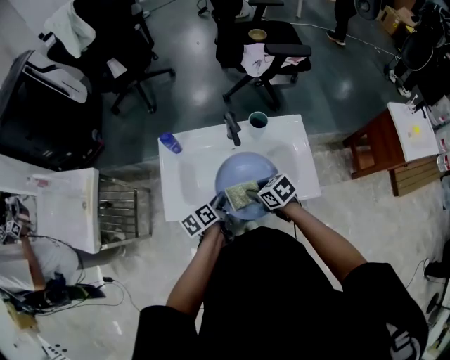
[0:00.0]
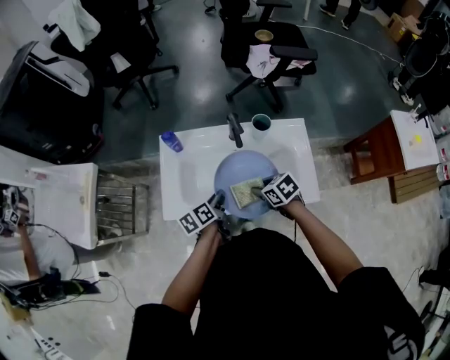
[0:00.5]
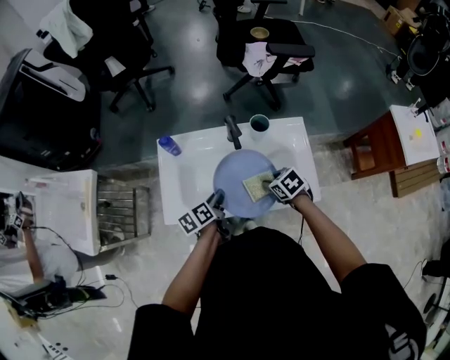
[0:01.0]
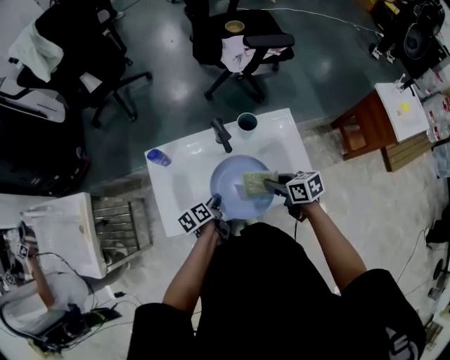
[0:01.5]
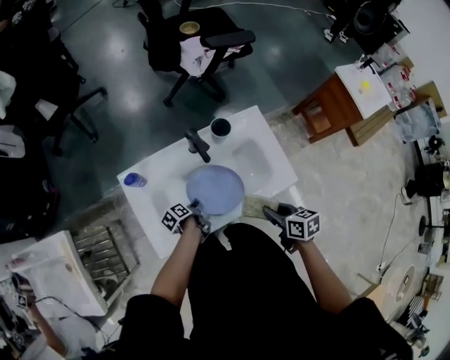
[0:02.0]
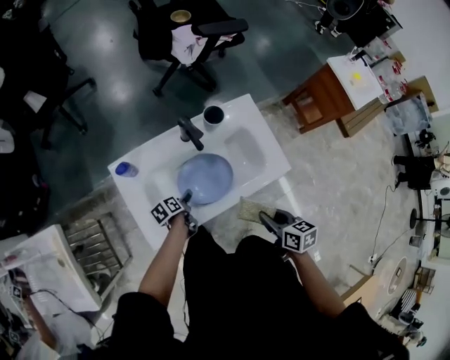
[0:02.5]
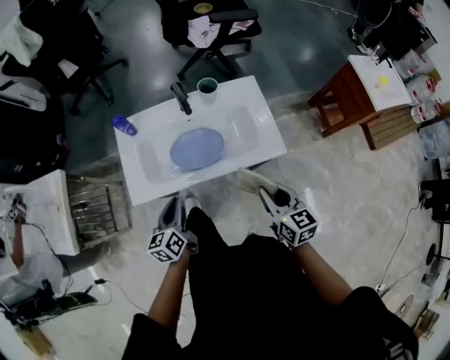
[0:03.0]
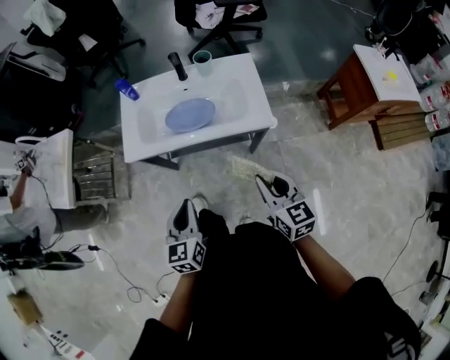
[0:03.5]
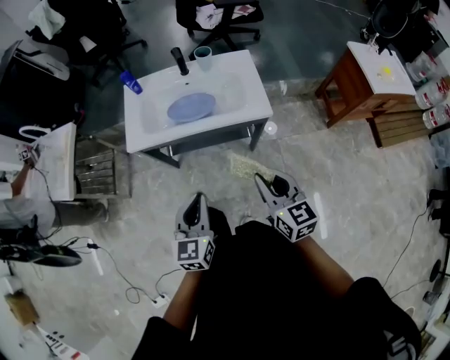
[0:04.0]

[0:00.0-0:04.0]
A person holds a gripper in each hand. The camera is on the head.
0:00.0 to 0:02.0: The right gripper changes place by approximately 10 cm, and swivels approximately 50 degrees. The left gripper heads downward, covering approximately 15 cm, and changes its angle by about 30 degrees.
0:02.0 to 0:04.0: The right gripper moves about 30 cm, and swivels roughly 40 degrees. Meanwhile the left gripper changes place by approximately 50 cm, rotates around the line of its fingers by roughly 60 degrees, clockwise from behind, and opens, then closes again.

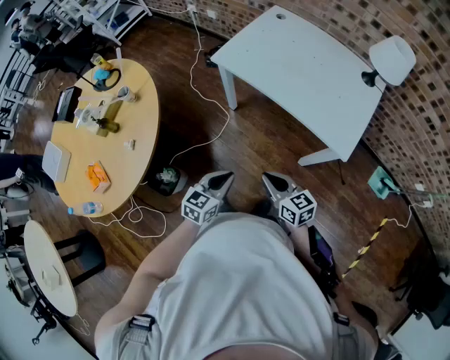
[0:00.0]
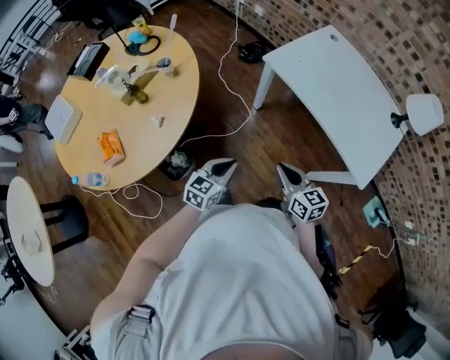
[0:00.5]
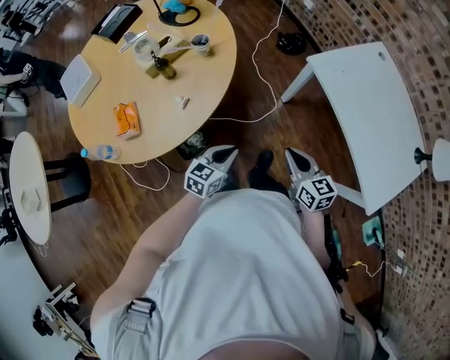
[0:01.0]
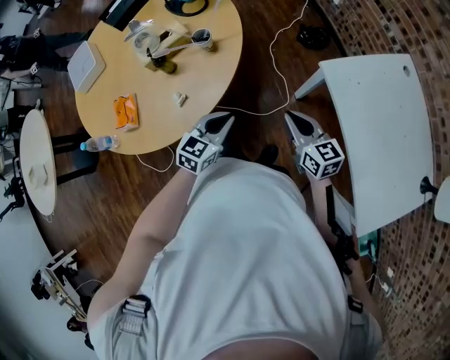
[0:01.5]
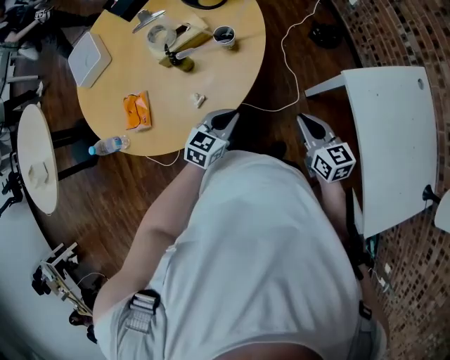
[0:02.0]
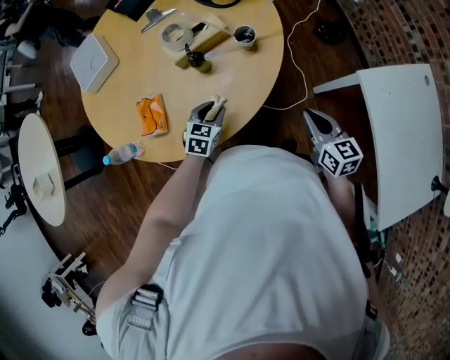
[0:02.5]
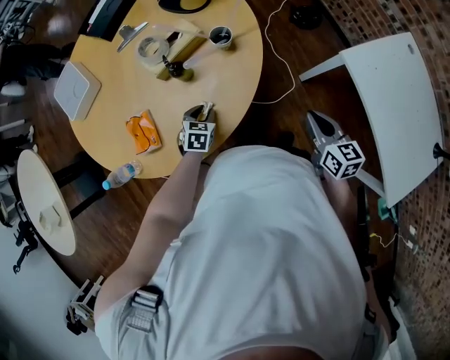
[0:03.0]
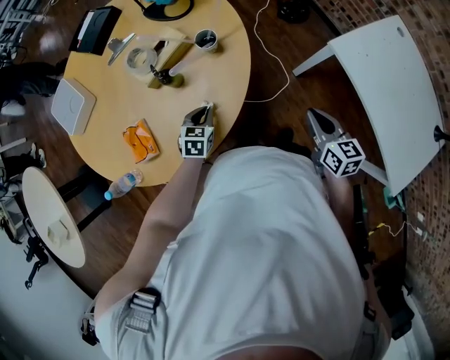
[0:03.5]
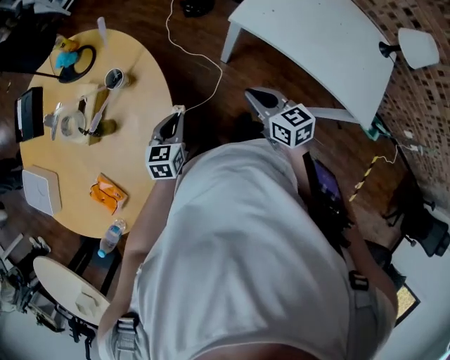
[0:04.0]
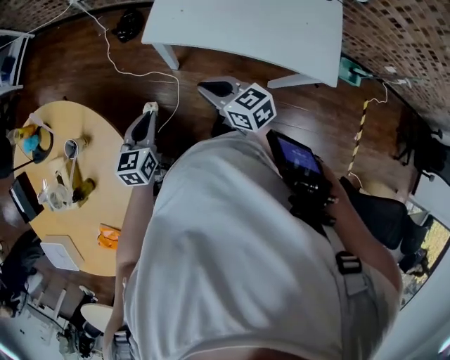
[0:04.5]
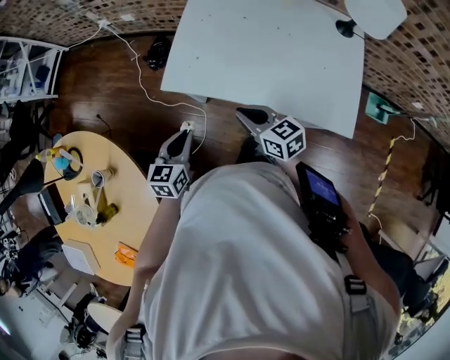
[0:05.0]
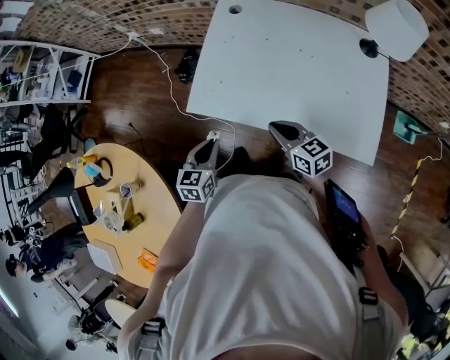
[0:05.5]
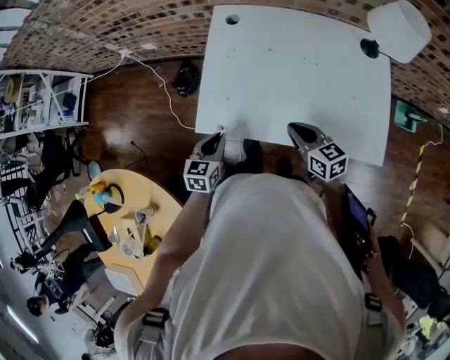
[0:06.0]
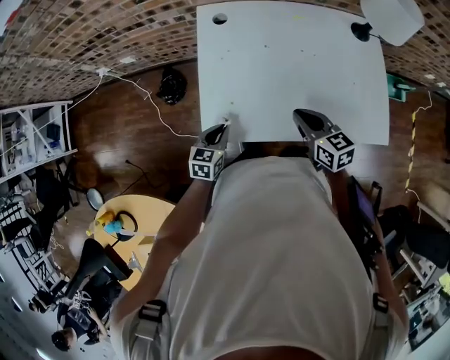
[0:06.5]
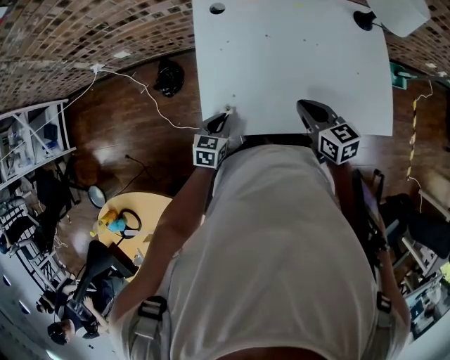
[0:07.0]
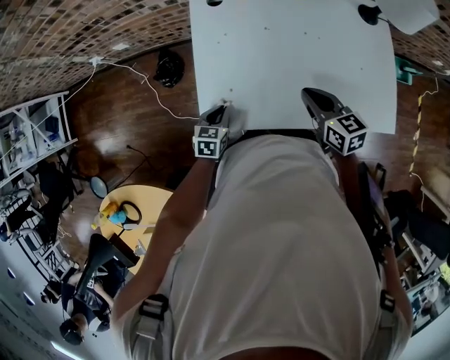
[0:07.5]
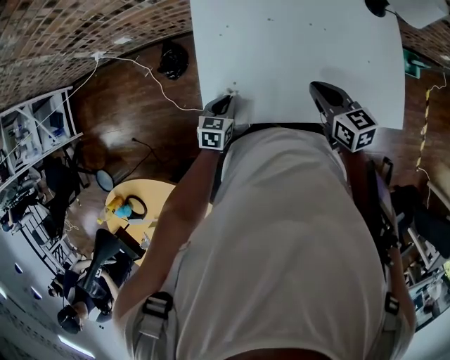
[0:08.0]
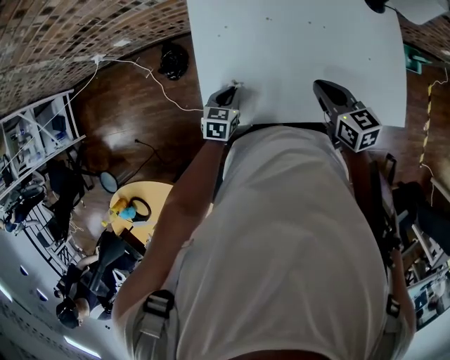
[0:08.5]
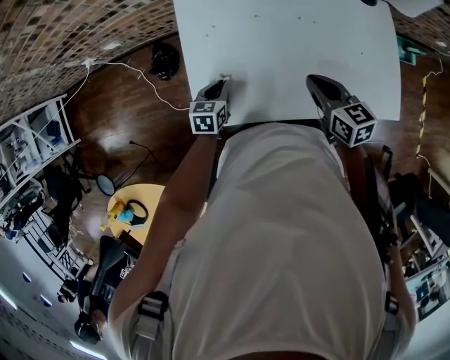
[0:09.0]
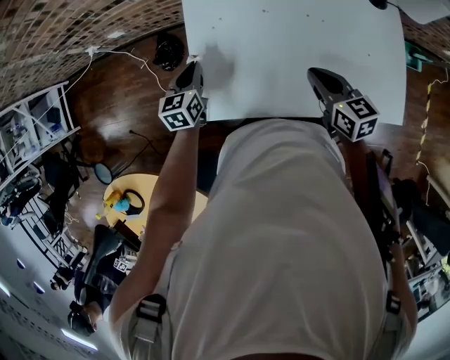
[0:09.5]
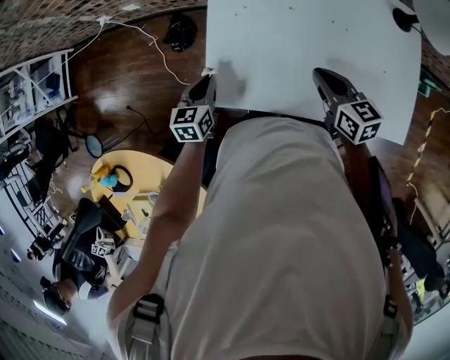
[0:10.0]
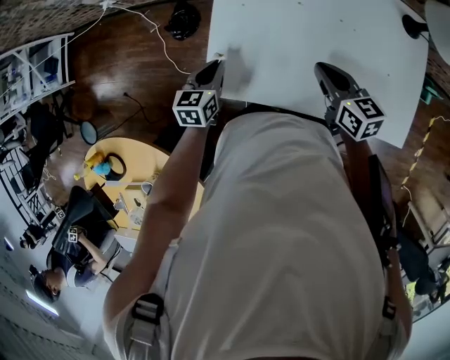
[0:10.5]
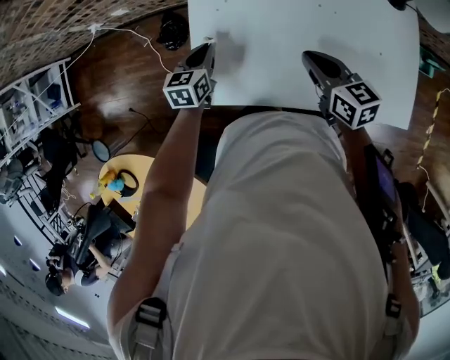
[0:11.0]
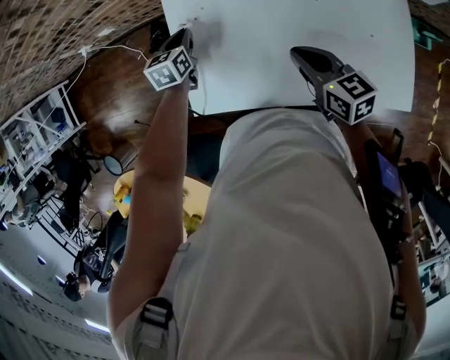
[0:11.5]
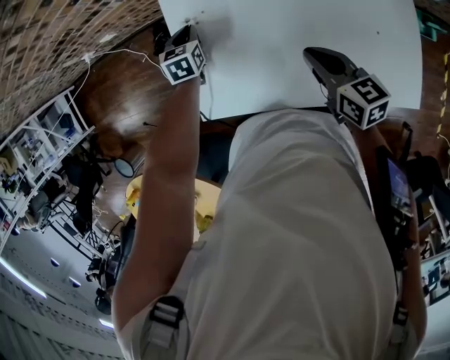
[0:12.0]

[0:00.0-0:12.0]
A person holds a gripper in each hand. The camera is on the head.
0:00.0 to 0:02.0: The pair of grippers is taken roughly 40 cm. The right gripper swivels roughly 30 degrees, while the left gripper turns by roughly 30 degrees.
0:02.0 to 0:04.0: The left gripper moves roughly 15 cm downward and comes back, and opens, then closes again. Meanwhile the right gripper shifts by some 5 cm, and swivels about 30 degrees.
0:04.0 to 0:06.0: The left gripper heads forward and to the right, covering approximately 40 cm, and swivels about 30 degrees; the right gripper shifts roughly 35 cm to the right and forward, and rotates some 30 degrees.
0:06.0 to 0:08.0: The left gripper moves forward and downward, about 15 cm. The right gripper heads forward, covering approximately 10 cm.
0:08.0 to 0:10.0: The left gripper goes roughly 10 cm upward and to the left, reaches approximately 10 cm forward, then returns, and swivels about 20 degrees.
0:10.0 to 0:12.0: The left gripper goes about 20 cm forward and to the right.

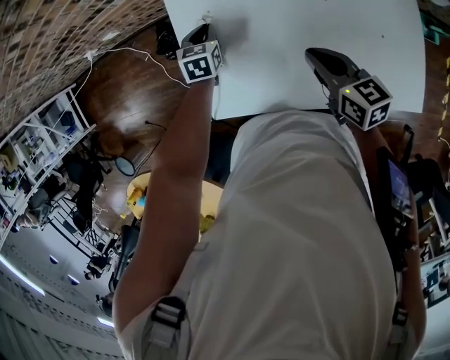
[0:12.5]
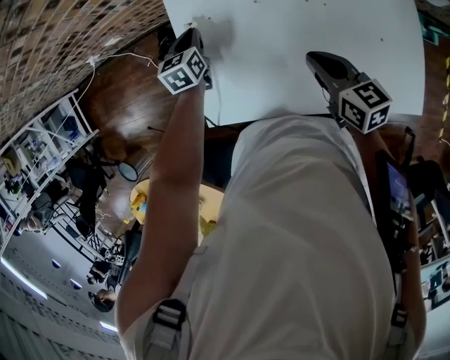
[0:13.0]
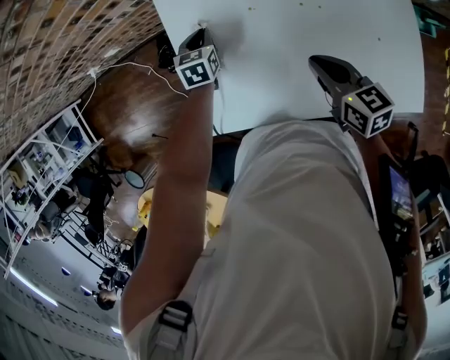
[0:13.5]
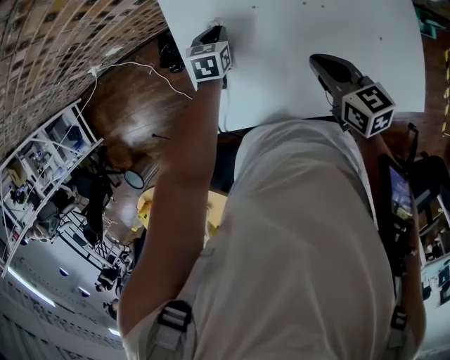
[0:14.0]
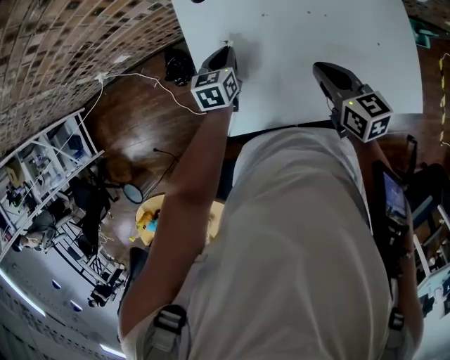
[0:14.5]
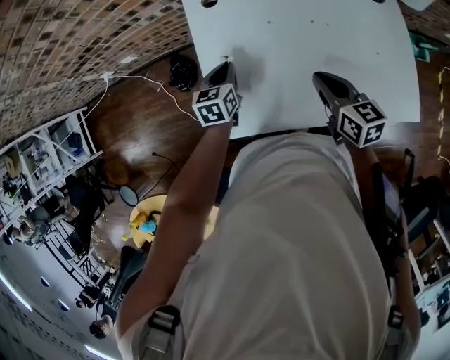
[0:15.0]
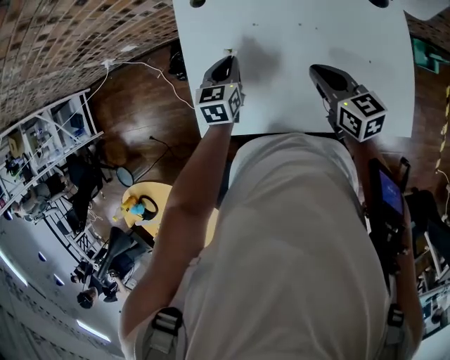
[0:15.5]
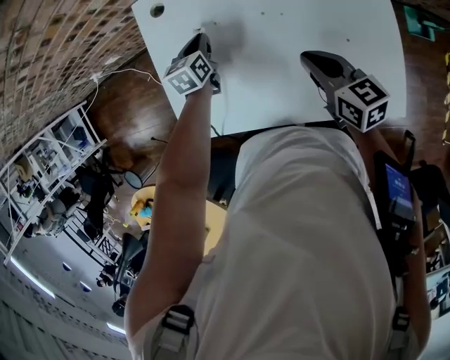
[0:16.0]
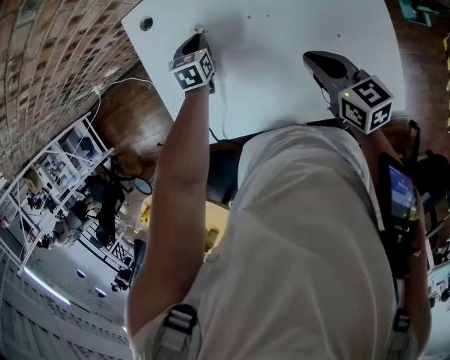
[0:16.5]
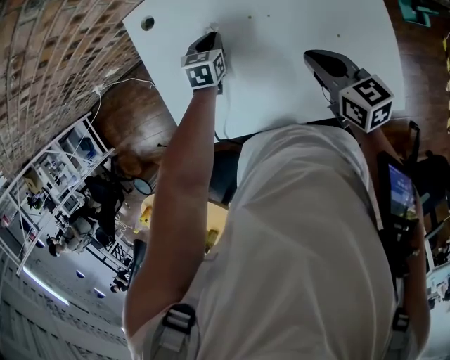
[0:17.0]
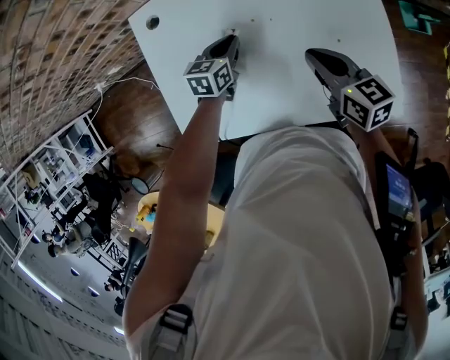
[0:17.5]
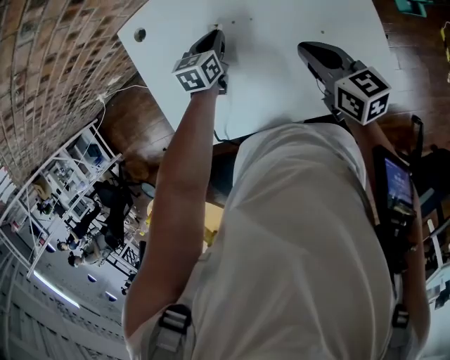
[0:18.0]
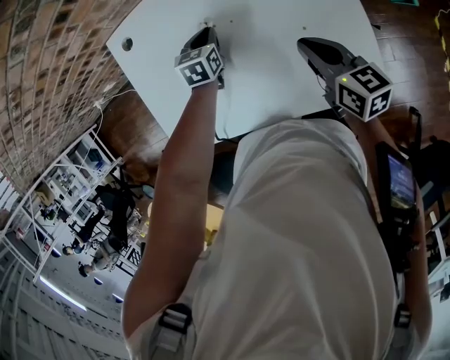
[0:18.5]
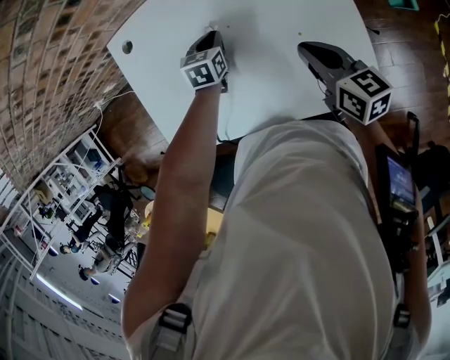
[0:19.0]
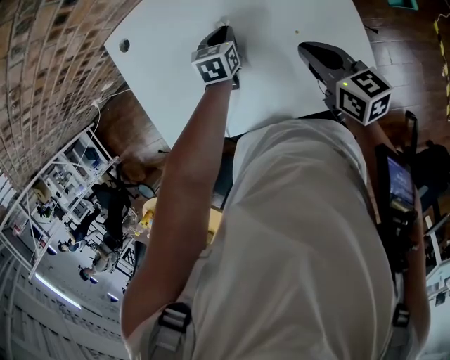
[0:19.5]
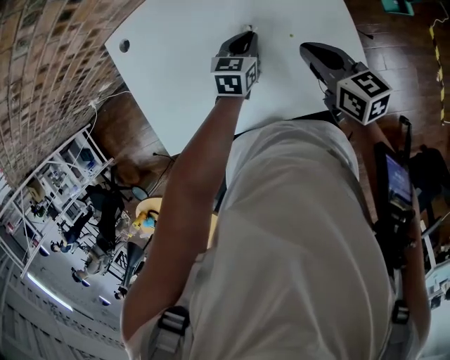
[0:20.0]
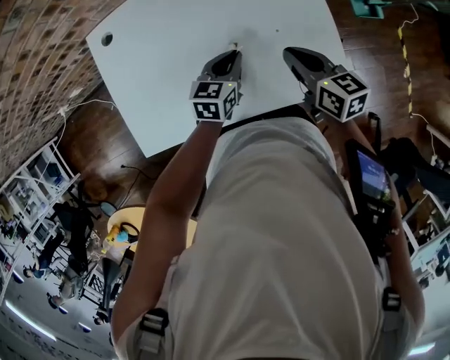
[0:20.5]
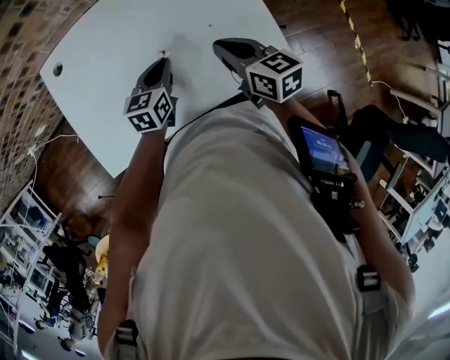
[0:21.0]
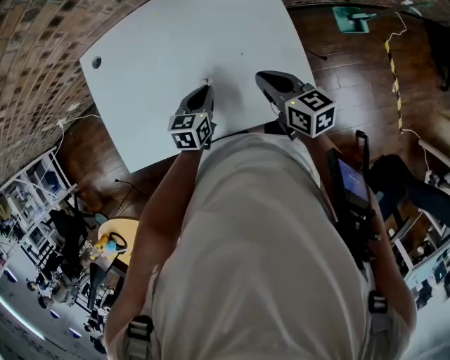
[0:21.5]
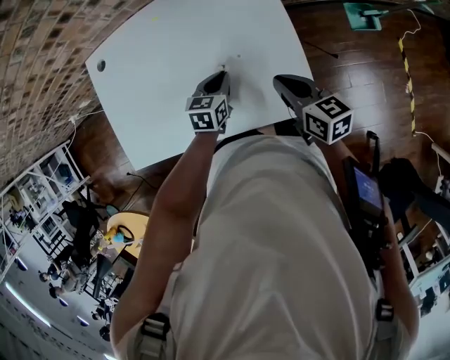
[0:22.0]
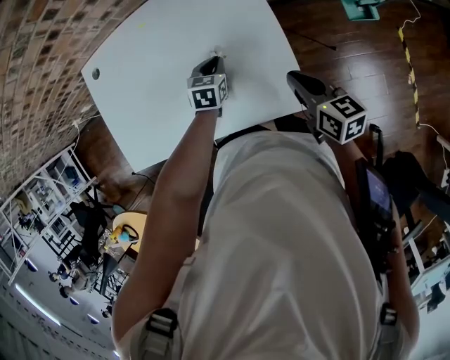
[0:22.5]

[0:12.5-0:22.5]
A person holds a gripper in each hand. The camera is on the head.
0:12.5 to 0:14.5: The left gripper ends up some 5 cm from where it was.
0:14.5 to 0:16.5: The right gripper travels to the right by some 15 cm. Meanwhile the left gripper heads to the right and forward, covering about 15 cm.
0:16.5 to 0:18.5: The left gripper moves to the right, some 15 cm, while the right gripper moves to the right, roughly 10 cm.
0:18.5 to 0:20.5: The right gripper shifts by some 5 cm; the left gripper goes about 20 cm backward and to the right, and rotates roughly 20 degrees.
0:20.5 to 0:22.5: The left gripper moves to the right, downward and forward, approximately 15 cm, and rotates roughly 20 degrees. The right gripper heads to the right, covering about 20 cm.
